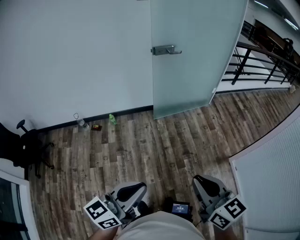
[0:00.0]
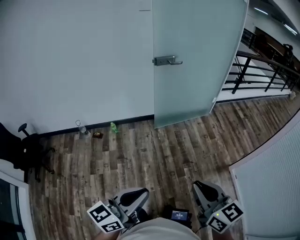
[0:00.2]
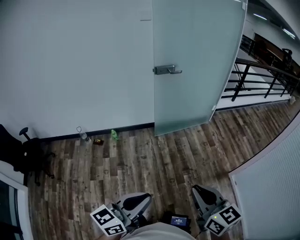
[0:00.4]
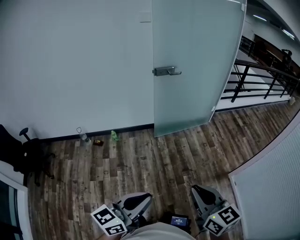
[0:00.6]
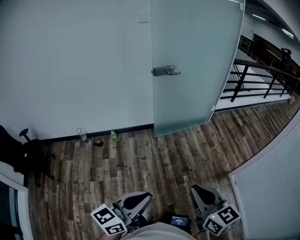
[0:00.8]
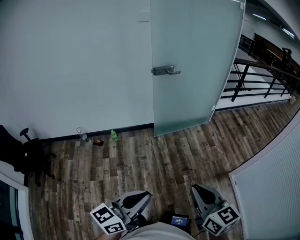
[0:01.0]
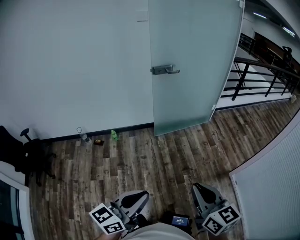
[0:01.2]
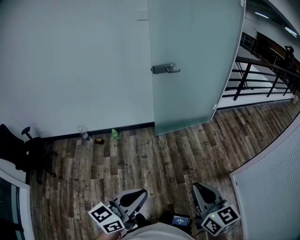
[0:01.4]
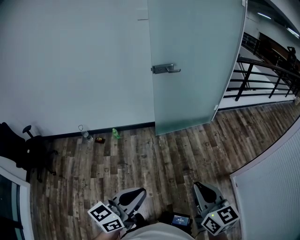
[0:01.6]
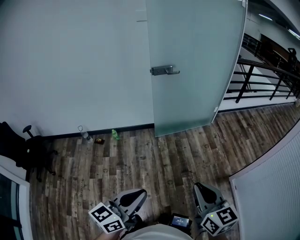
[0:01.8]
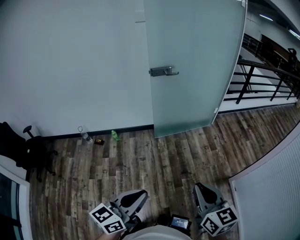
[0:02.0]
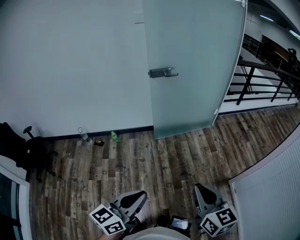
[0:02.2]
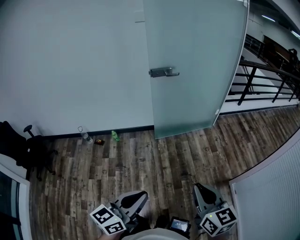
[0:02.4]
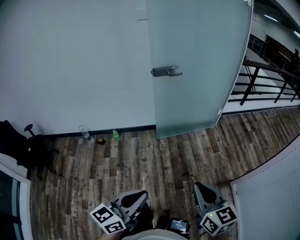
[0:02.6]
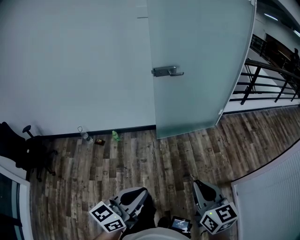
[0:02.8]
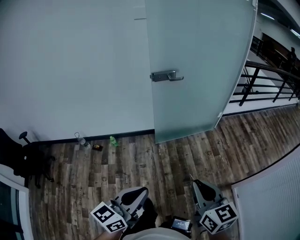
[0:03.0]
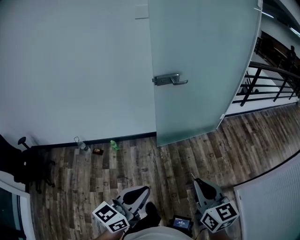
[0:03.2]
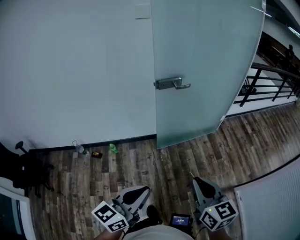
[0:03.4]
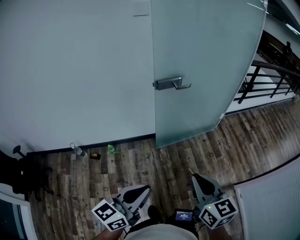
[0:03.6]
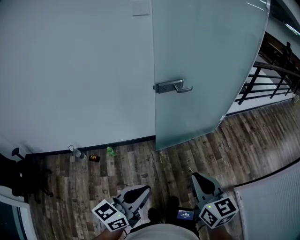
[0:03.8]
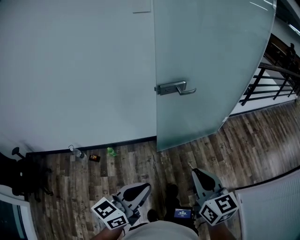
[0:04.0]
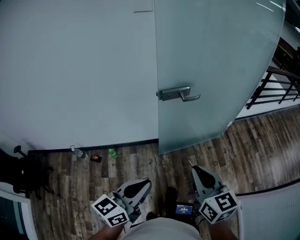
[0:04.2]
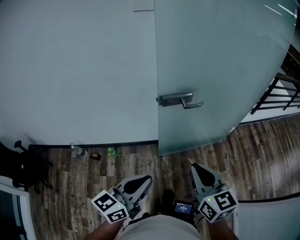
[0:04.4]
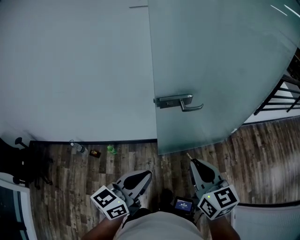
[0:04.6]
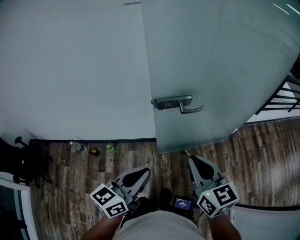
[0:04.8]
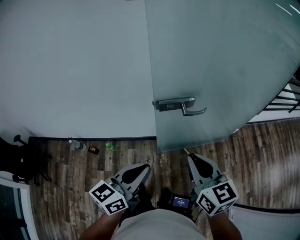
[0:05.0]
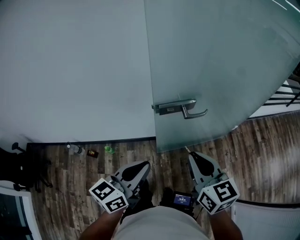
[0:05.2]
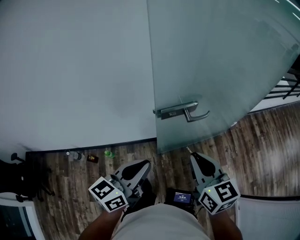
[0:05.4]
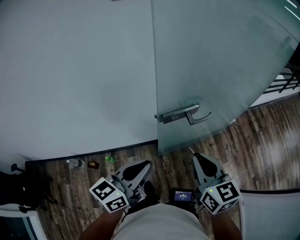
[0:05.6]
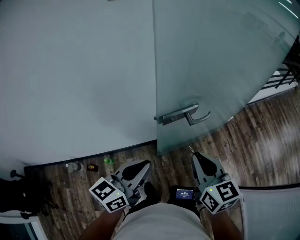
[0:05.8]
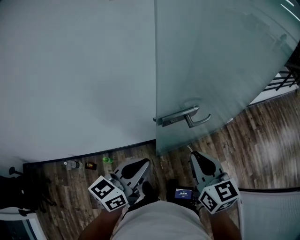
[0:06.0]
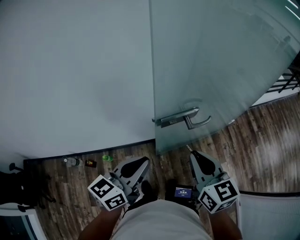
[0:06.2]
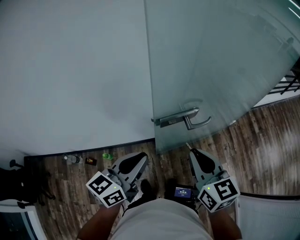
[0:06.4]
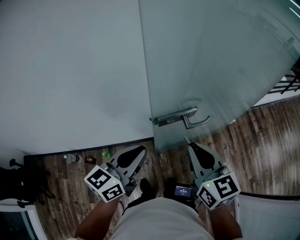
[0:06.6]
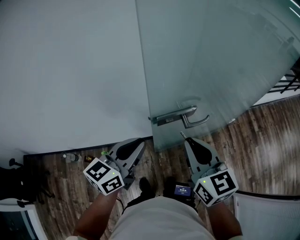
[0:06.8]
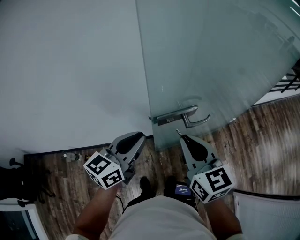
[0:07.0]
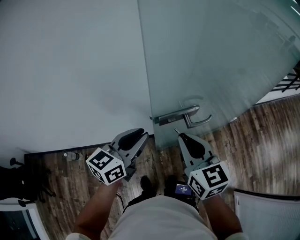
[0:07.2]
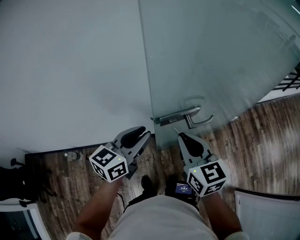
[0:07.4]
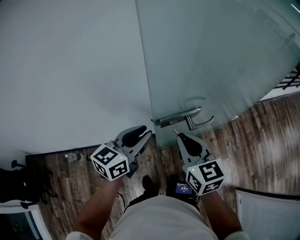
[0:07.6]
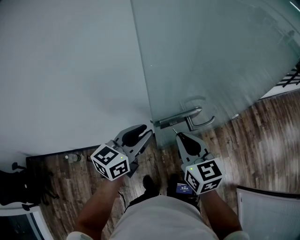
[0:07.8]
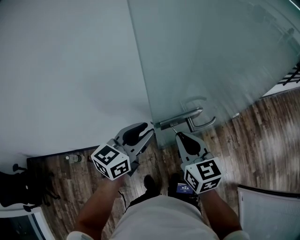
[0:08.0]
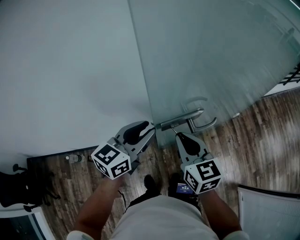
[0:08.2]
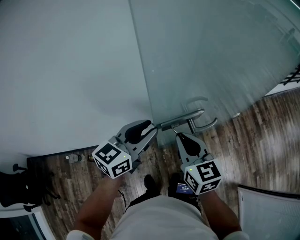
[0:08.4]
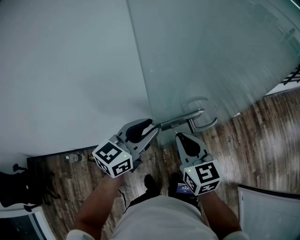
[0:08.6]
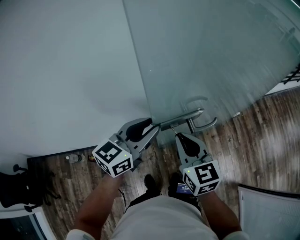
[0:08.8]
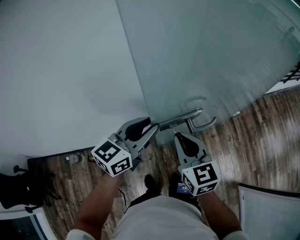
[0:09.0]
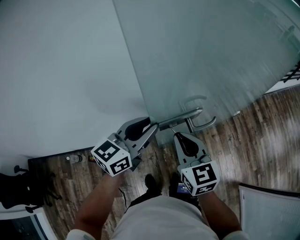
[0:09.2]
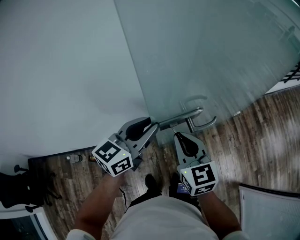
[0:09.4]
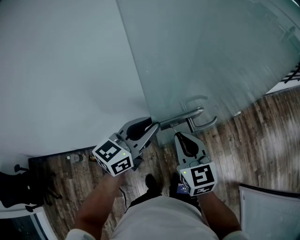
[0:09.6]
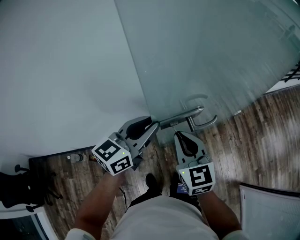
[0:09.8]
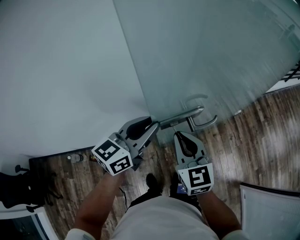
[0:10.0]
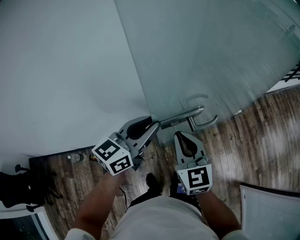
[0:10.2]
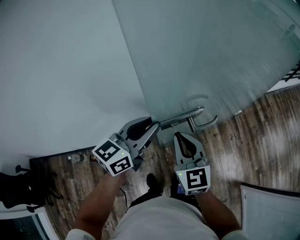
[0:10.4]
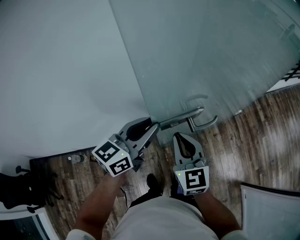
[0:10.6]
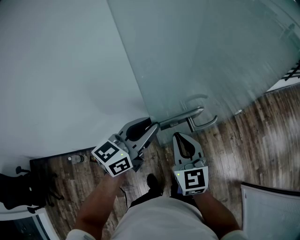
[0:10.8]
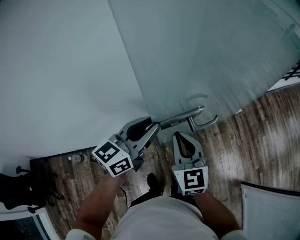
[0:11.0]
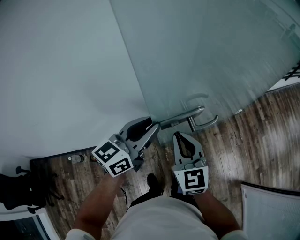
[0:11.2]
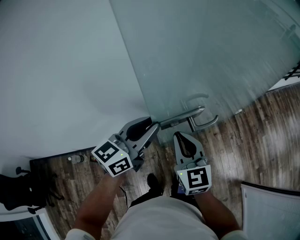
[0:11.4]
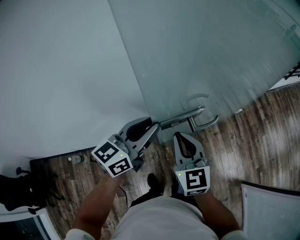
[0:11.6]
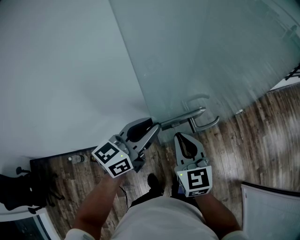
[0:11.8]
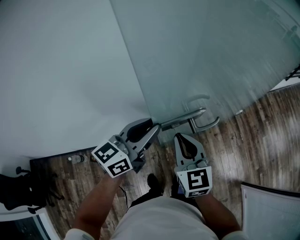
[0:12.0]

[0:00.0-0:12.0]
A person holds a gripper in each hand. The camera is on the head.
0:00.0 to 0:01.6: The right gripper shifts about 5 cm to the right.
0:01.6 to 0:03.0: Both grippers travel together forward, about 15 cm.
0:03.0 to 0:04.4: Both grippers move forward, roughly 30 cm.
0:04.4 to 0:06.0: Both grippers travel together forward, approximately 20 cm.
0:06.0 to 0:07.6: Both grippers travel together forward, roughly 10 cm.
0:07.6 to 0:10.4: The grippers stay close to where they were, moving slightly.
0:10.4 to 0:12.0: Both grippers stay put.

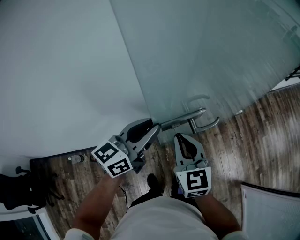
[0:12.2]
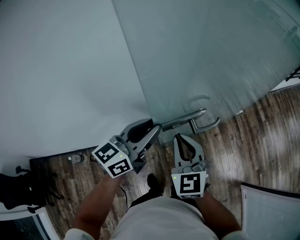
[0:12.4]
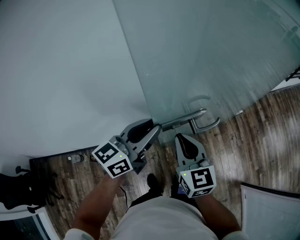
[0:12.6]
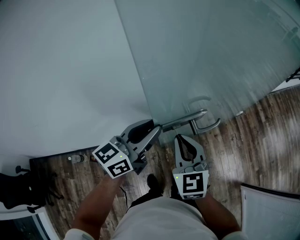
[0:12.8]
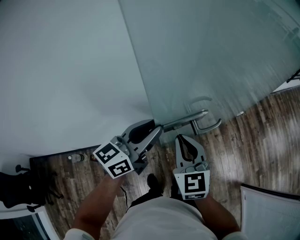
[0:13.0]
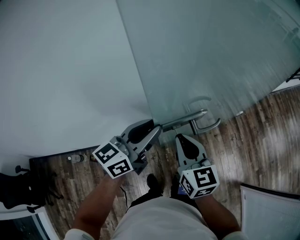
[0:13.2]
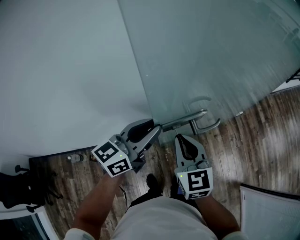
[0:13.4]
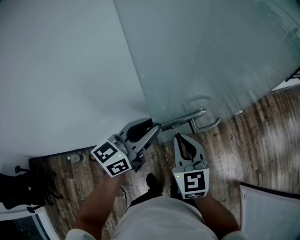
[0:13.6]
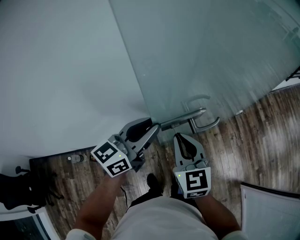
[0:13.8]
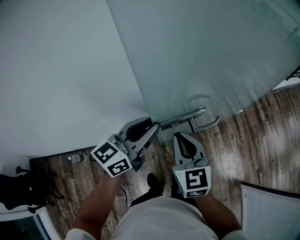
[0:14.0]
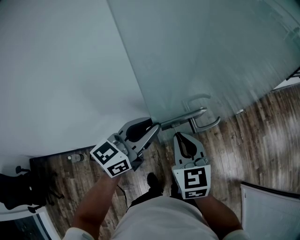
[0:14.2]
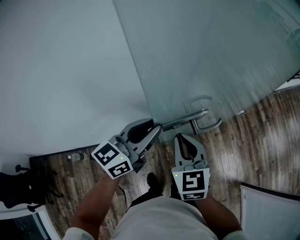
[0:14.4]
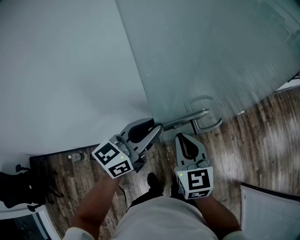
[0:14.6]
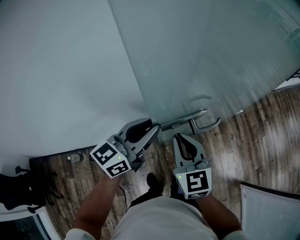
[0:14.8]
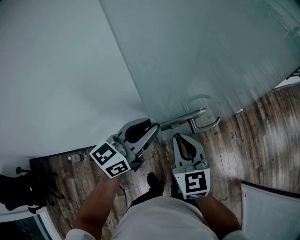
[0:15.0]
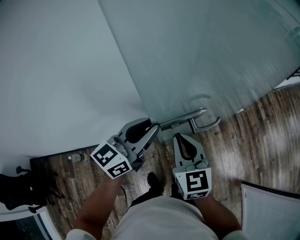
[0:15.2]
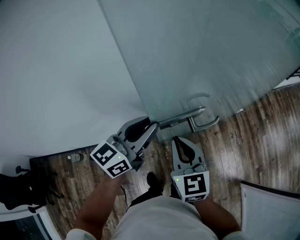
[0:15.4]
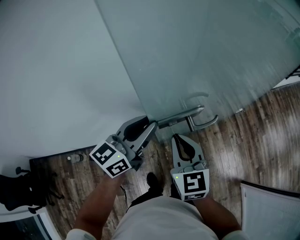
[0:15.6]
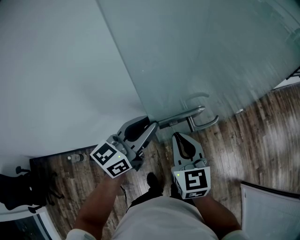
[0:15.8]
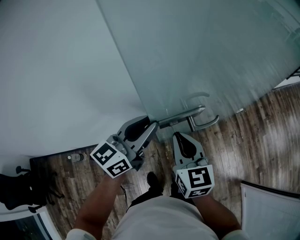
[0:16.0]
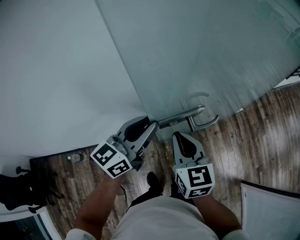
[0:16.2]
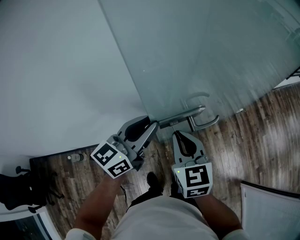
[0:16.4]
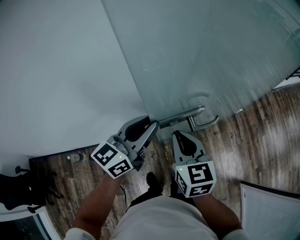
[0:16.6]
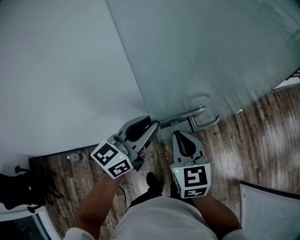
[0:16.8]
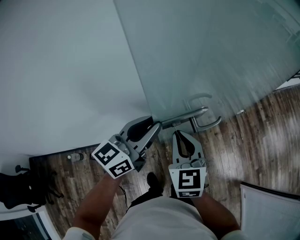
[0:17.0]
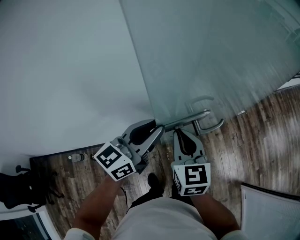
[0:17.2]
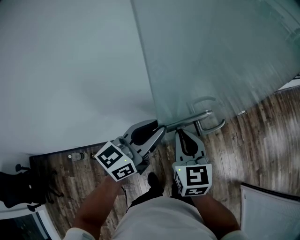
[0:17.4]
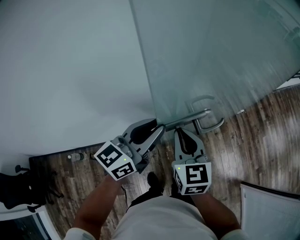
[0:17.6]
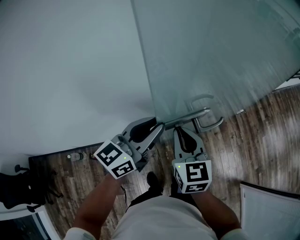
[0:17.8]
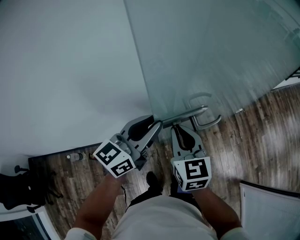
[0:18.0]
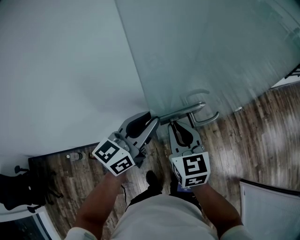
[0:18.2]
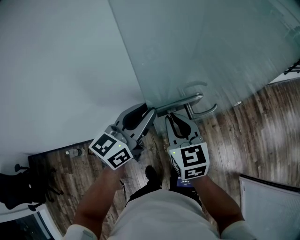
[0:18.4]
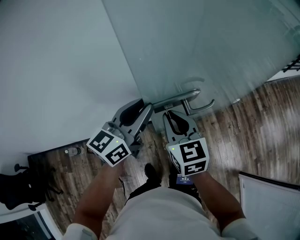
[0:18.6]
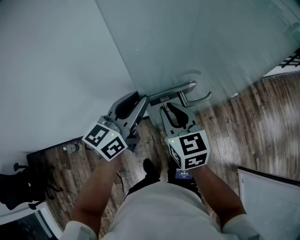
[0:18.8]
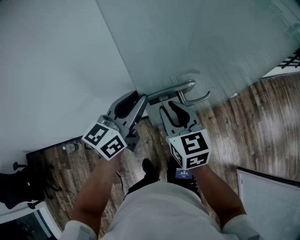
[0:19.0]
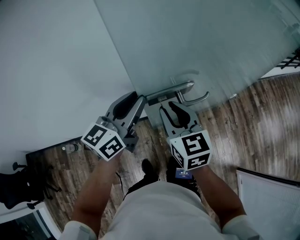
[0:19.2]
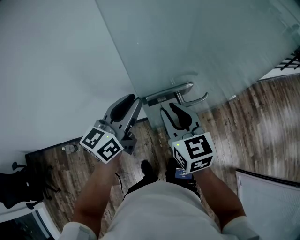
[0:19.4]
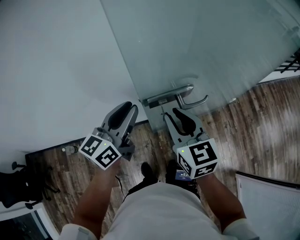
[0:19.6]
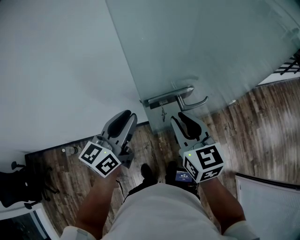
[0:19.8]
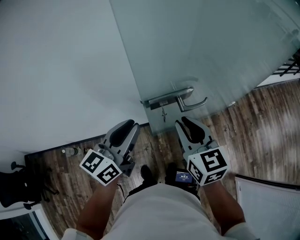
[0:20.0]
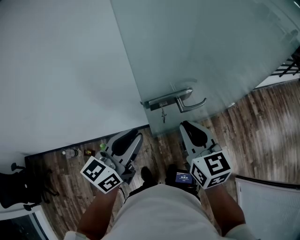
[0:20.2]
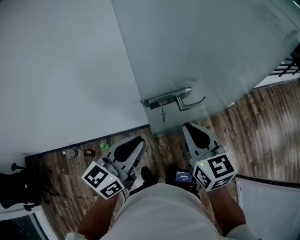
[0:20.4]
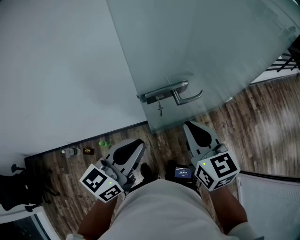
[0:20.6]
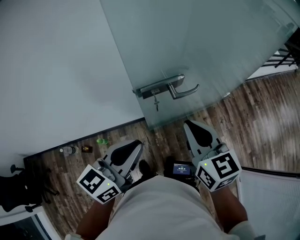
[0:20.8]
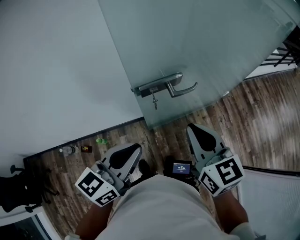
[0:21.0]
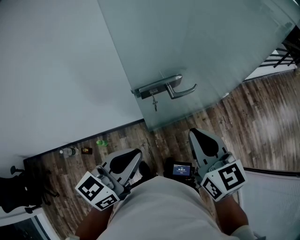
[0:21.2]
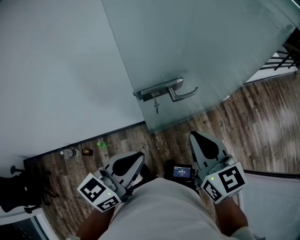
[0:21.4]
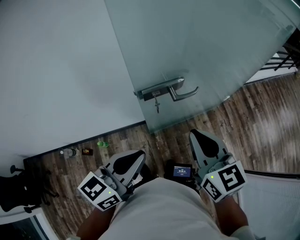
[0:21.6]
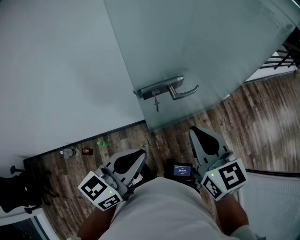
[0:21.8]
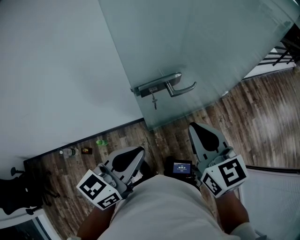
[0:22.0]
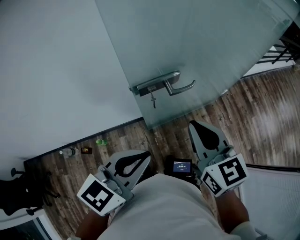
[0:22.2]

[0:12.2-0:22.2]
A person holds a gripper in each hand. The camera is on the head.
0:12.2 to 0:19.4: The grippers make only small movements.
0:19.4 to 0:20.8: The right gripper shifts approximately 10 cm backward and to the right. The left gripper goes approximately 15 cm backward.
0:20.8 to 0:22.2: The left gripper changes place by some 5 cm.

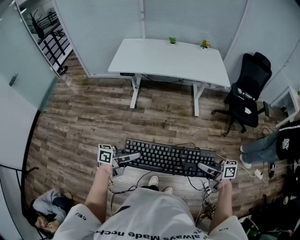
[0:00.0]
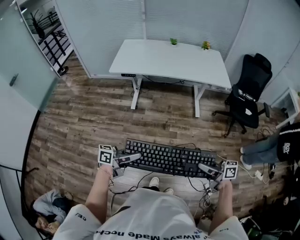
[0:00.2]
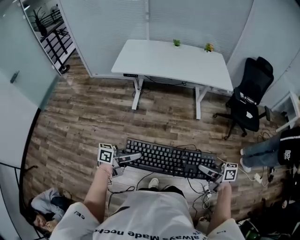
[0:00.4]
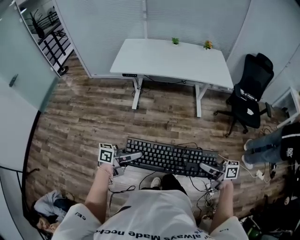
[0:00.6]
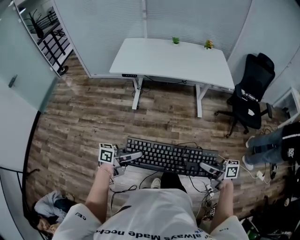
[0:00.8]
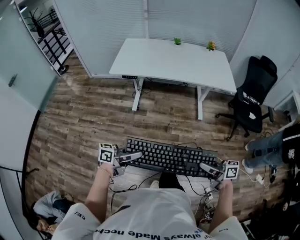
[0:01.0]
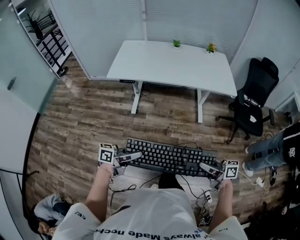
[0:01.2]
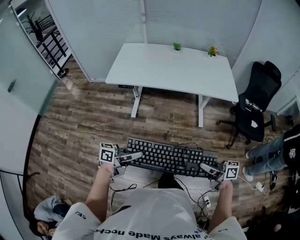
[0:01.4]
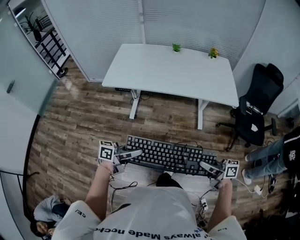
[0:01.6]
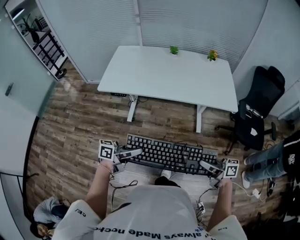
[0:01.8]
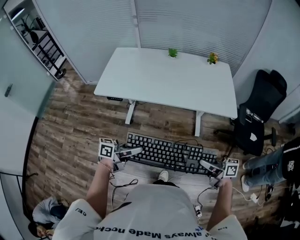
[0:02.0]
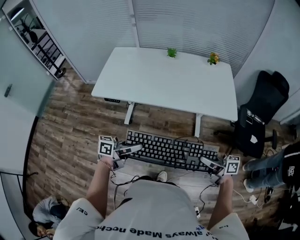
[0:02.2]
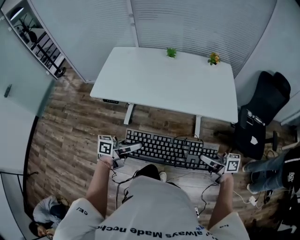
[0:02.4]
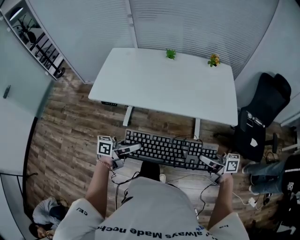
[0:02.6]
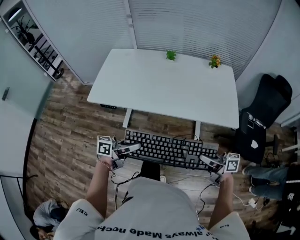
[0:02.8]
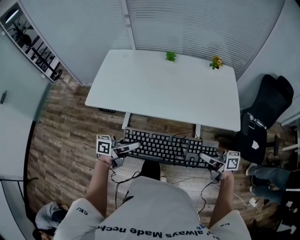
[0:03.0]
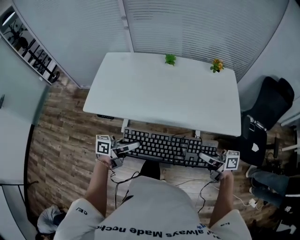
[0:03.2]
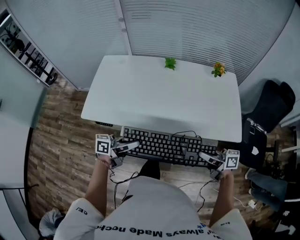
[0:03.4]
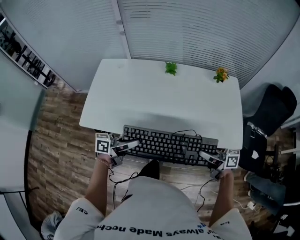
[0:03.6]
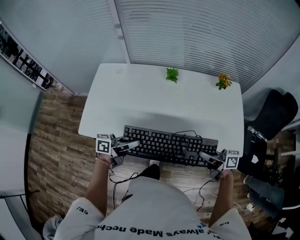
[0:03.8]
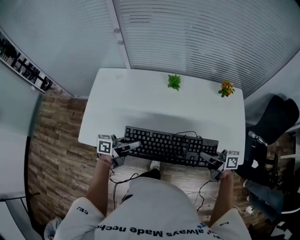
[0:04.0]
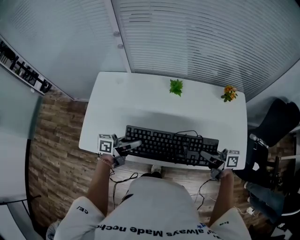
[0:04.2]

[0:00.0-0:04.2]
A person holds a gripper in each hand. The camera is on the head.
0:00.0 to 0:01.4: The left gripper shifts by roughly 15 cm, while the right gripper changes place by approximately 15 cm.
0:01.4 to 0:02.8: The left gripper ends up some 30 cm from where it was. The right gripper ends up some 30 cm from where it was.
0:02.8 to 0:04.2: The left gripper ends up roughly 35 cm from where it was, while the right gripper moves roughly 35 cm.
